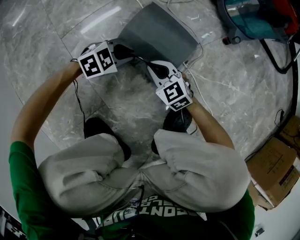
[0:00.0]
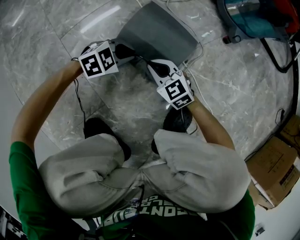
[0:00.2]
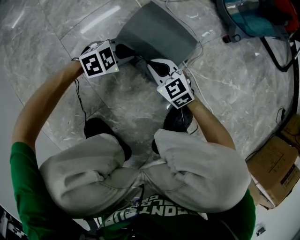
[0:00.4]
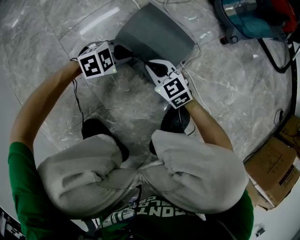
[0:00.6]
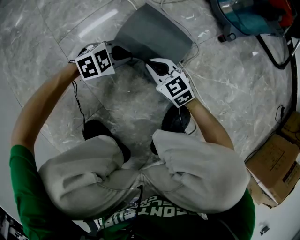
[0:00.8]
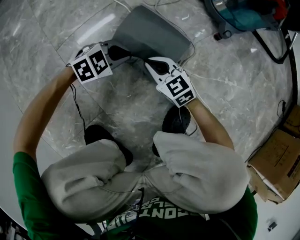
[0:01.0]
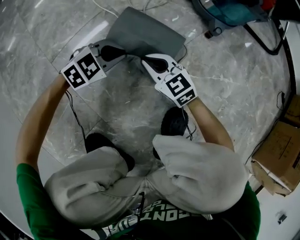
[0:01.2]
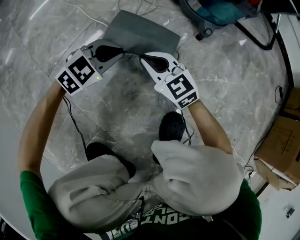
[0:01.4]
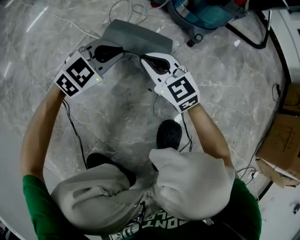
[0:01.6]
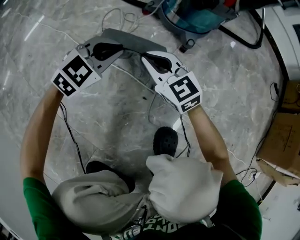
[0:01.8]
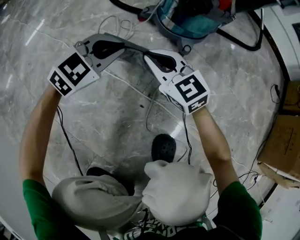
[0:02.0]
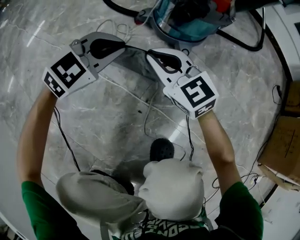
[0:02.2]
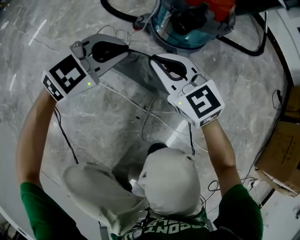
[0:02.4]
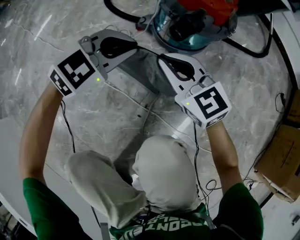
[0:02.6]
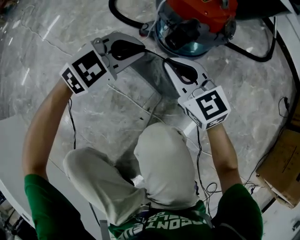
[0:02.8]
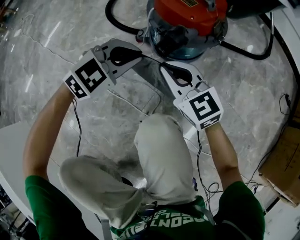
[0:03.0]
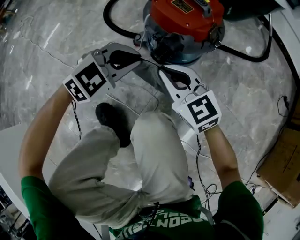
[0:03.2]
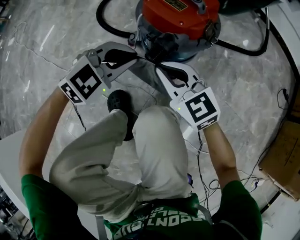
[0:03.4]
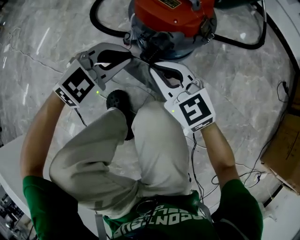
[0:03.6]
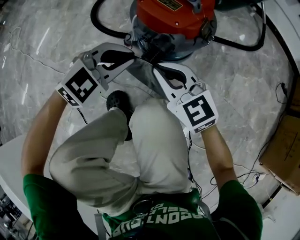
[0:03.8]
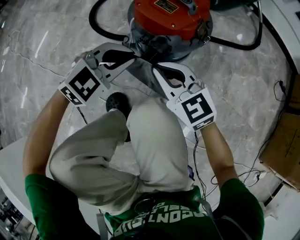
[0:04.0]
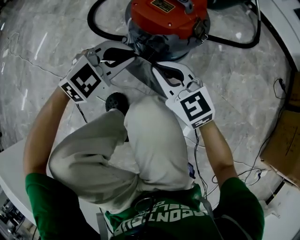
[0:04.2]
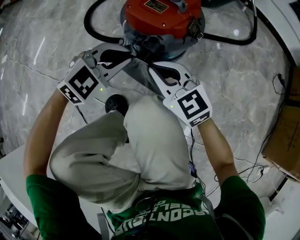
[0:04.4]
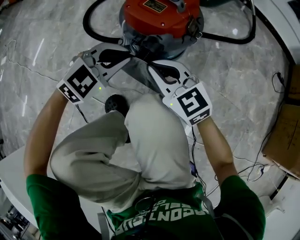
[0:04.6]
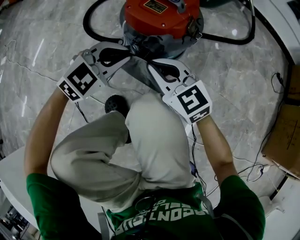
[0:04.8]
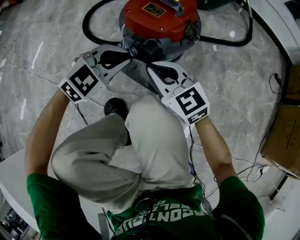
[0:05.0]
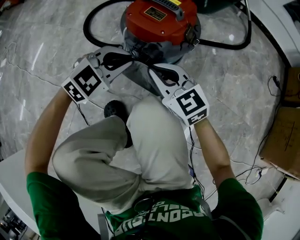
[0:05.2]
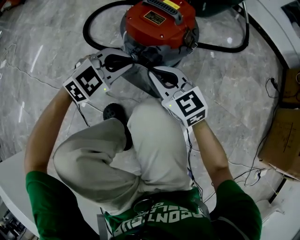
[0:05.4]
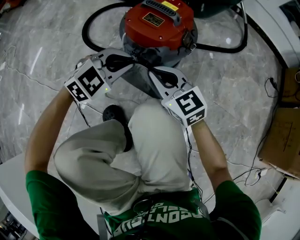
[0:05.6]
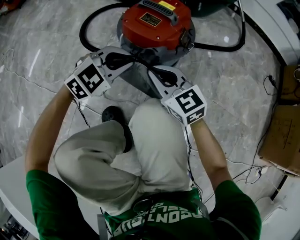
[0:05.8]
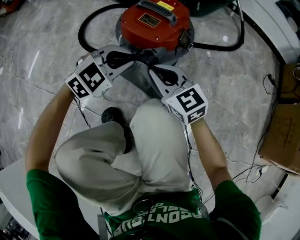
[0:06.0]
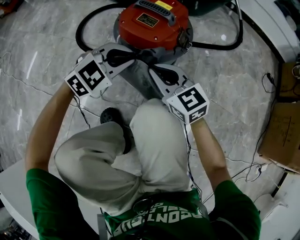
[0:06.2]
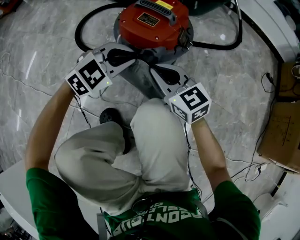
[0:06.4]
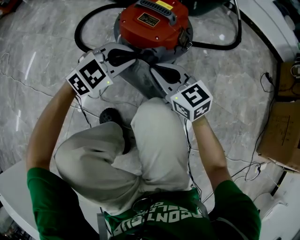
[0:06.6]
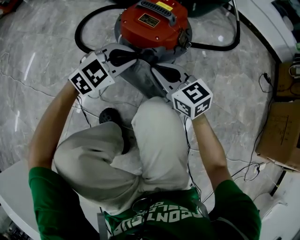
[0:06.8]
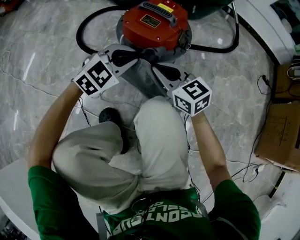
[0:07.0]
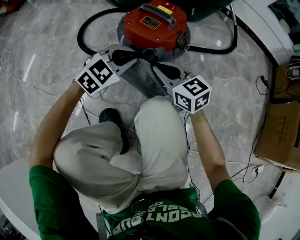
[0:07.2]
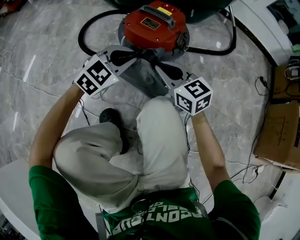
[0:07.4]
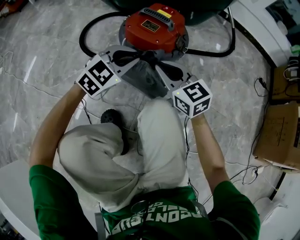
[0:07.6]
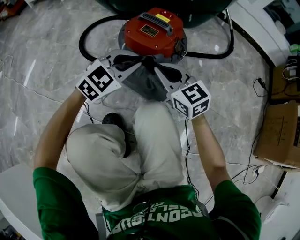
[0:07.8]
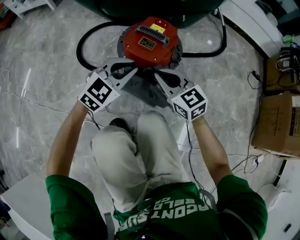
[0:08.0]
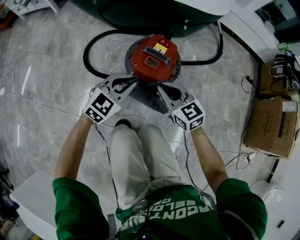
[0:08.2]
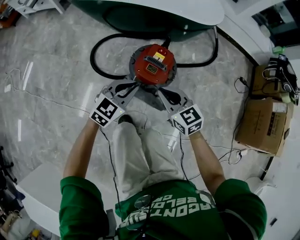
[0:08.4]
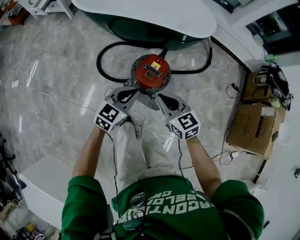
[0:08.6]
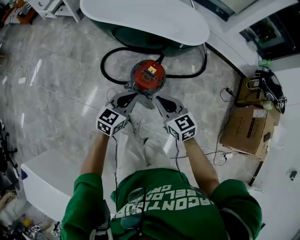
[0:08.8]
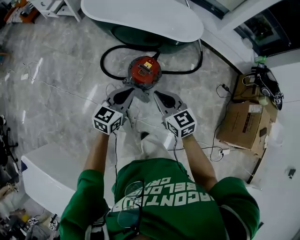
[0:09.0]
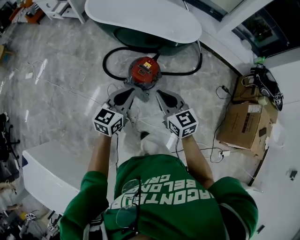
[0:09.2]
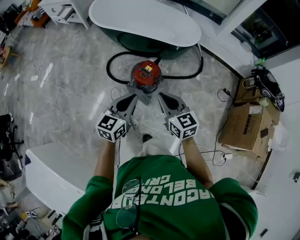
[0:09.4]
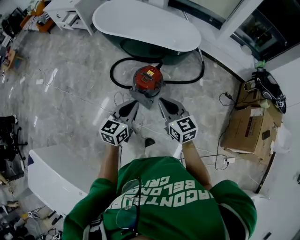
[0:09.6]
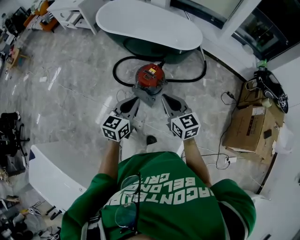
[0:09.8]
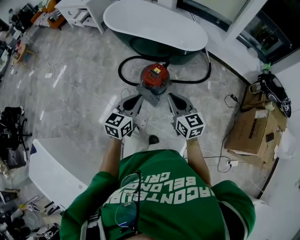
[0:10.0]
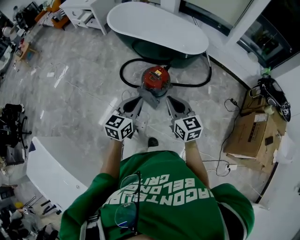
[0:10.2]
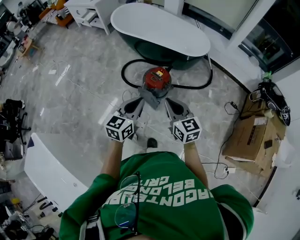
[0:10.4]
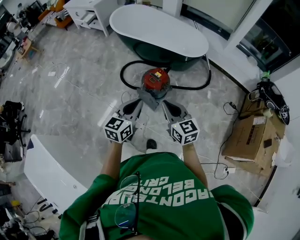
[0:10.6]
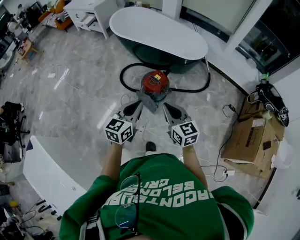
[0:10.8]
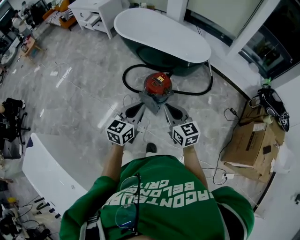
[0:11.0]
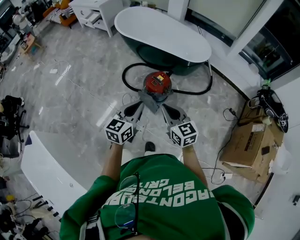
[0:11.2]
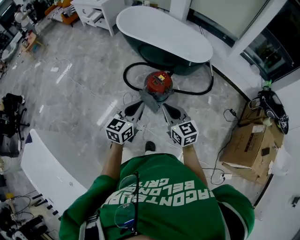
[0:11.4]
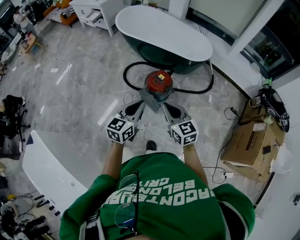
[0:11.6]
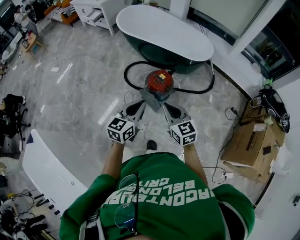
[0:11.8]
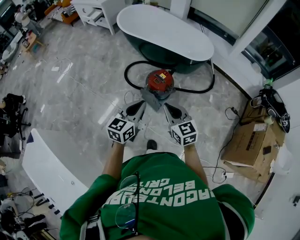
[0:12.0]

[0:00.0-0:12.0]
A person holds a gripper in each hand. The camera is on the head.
0:00.0 to 0:01.6: The grippers both shift upward by approximately 15 cm. The right gripper turns by roughly 20 degrees. The left gripper swivels some 20 degrees.
0:01.6 to 0:03.0: Both grippers move forward, upward and to the right, about 25 cm.
0:03.0 to 0:04.4: The left gripper ends up roughly 5 cm from where it was.
0:04.4 to 0:07.6: The grippers stay close to where they were, moving slightly.
0:07.6 to 0:09.0: Both grippers move upward, approximately 60 cm. The left gripper changes its angle by about 40 degrees.
0:09.0 to 0:10.4: The left gripper moves backward and upward, some 20 cm. The right gripper moves backward, upward and to the right, approximately 20 cm.
0:10.4 to 0:12.0: The grippers make only small movements.

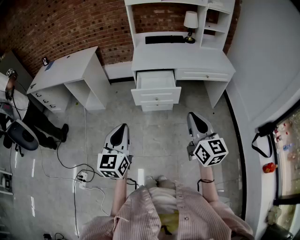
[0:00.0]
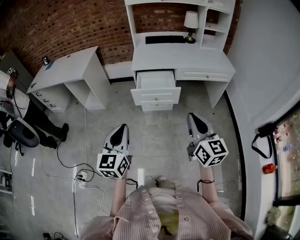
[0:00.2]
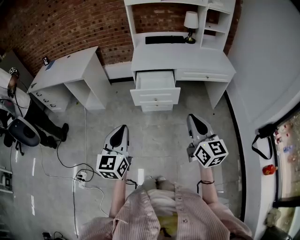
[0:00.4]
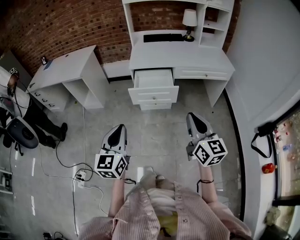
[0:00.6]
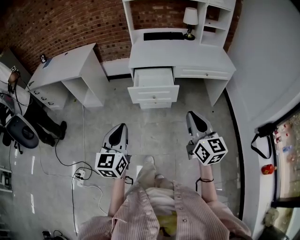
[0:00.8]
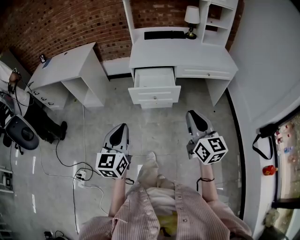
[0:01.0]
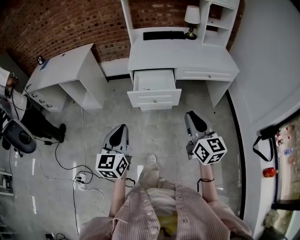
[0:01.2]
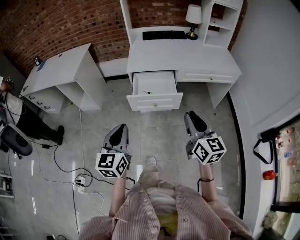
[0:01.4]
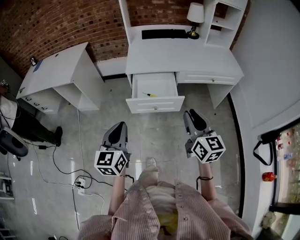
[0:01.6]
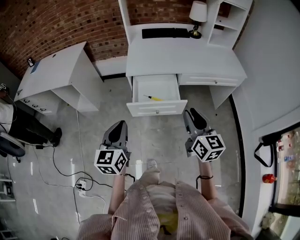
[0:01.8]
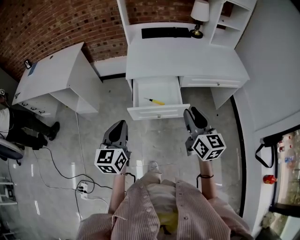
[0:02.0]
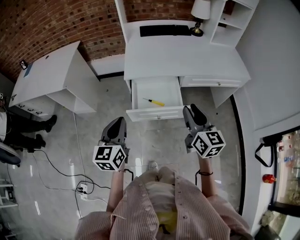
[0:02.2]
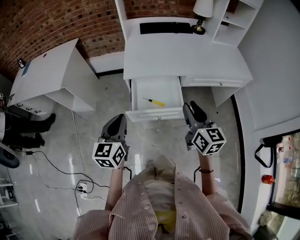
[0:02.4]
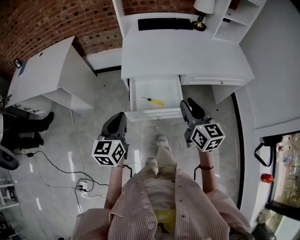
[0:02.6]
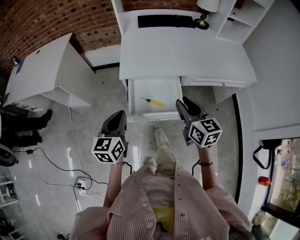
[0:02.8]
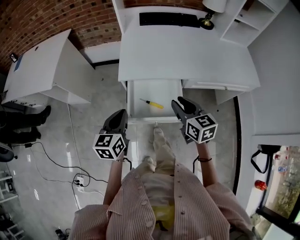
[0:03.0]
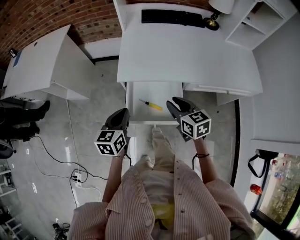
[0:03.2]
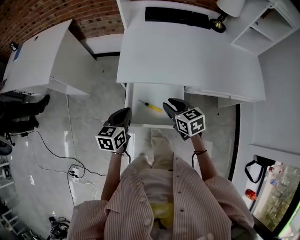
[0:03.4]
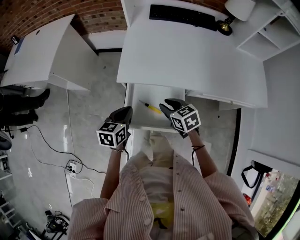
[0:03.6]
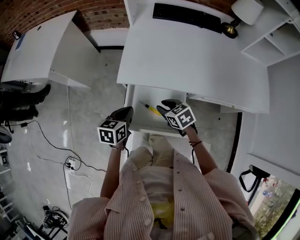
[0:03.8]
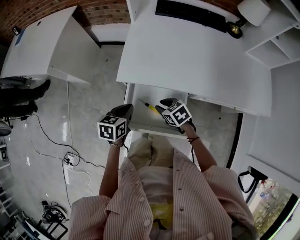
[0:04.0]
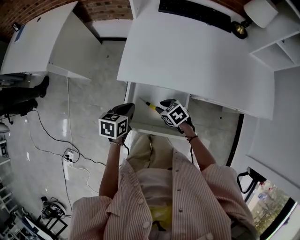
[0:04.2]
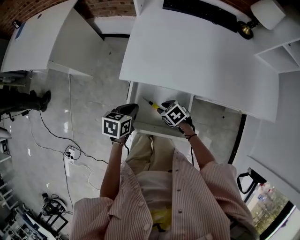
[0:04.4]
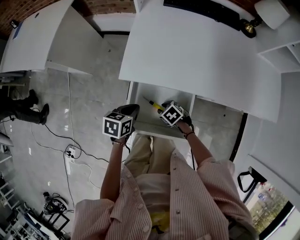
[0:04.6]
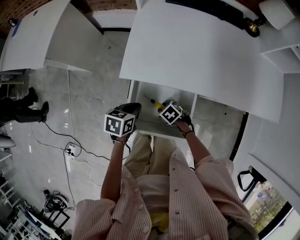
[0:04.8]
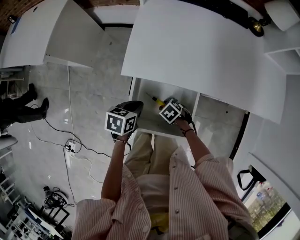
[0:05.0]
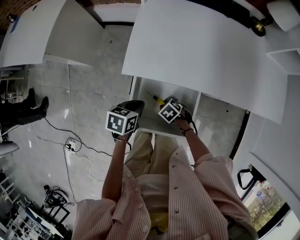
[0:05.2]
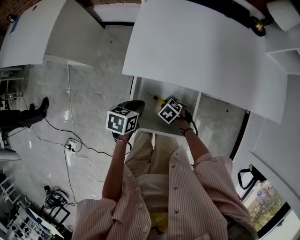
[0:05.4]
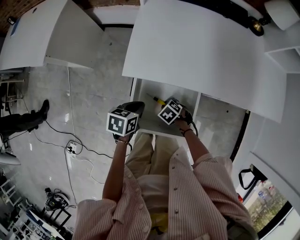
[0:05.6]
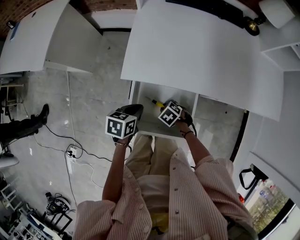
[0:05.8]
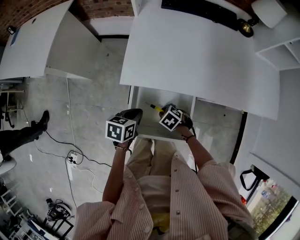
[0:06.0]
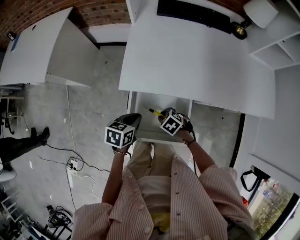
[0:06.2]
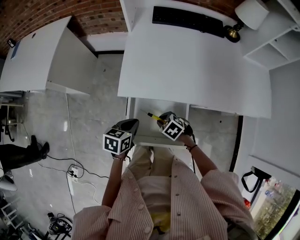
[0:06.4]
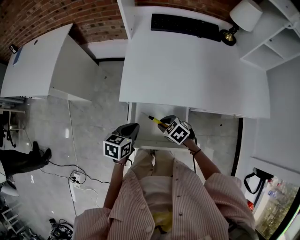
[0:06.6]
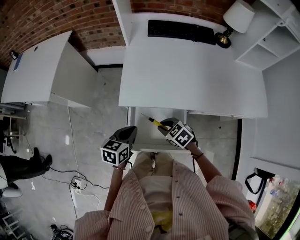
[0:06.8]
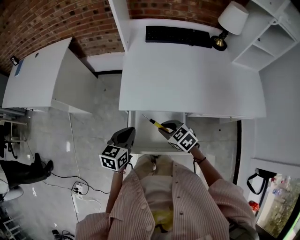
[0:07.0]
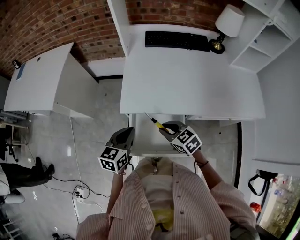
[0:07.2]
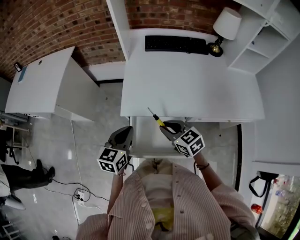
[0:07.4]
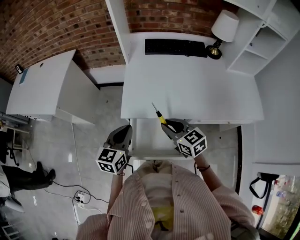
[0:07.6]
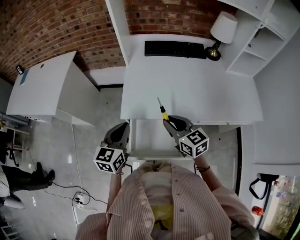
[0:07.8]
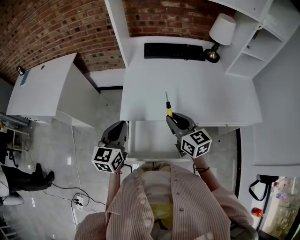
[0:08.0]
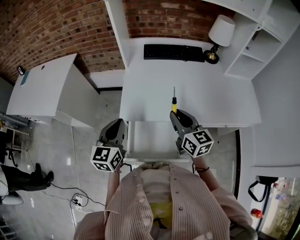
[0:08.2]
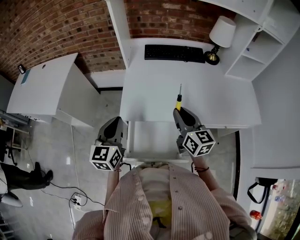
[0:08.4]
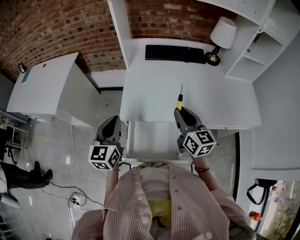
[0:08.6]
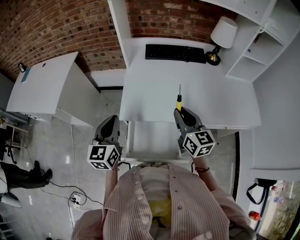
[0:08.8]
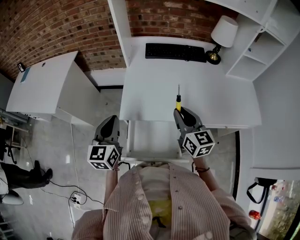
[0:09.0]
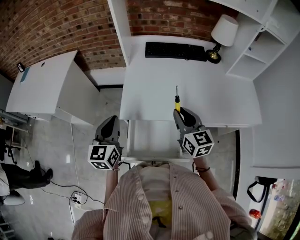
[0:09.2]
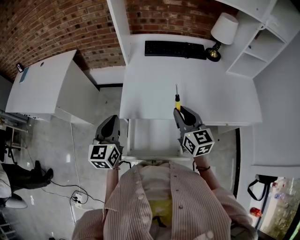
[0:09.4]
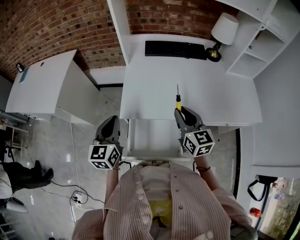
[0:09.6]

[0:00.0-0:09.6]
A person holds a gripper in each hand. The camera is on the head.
0:00.0 to 0:01.6: Both grippers move forward, some 20 cm.
0:01.6 to 0:03.2: The grippers both shift forward and downward by roughly 35 cm. The right gripper changes its angle by approximately 30 degrees; the left gripper swivels approximately 20 degrees.
0:03.2 to 0:04.8: The right gripper shifts approximately 25 cm downward, and tilts its fingers some 40 degrees downward. Meanwhile the left gripper shifts roughly 15 cm downward, and changes its angle by roughly 30 degrees.
0:04.8 to 0:06.4: The right gripper heads upward, covering some 5 cm.
0:06.4 to 0:08.0: The two grippers go roughly 25 cm upward. The right gripper angles its fingers upward, by roughly 50 degrees, while the left gripper tilts its fingers some 30 degrees upward.
0:08.0 to 0:09.6: The grippers move only a little.

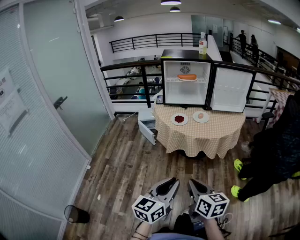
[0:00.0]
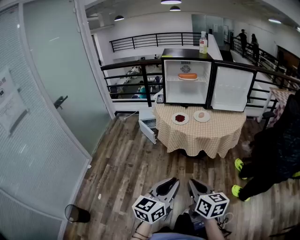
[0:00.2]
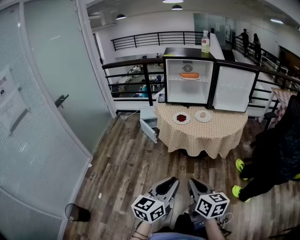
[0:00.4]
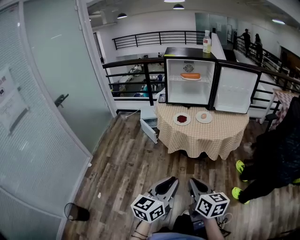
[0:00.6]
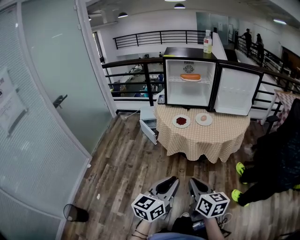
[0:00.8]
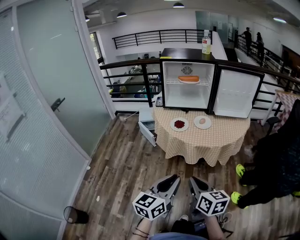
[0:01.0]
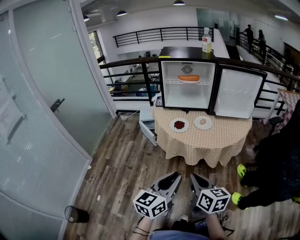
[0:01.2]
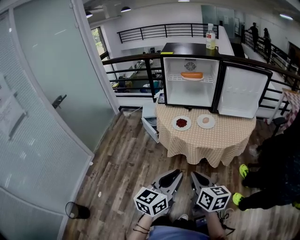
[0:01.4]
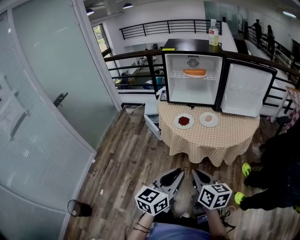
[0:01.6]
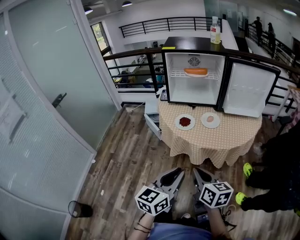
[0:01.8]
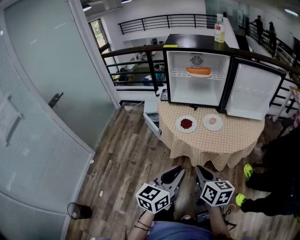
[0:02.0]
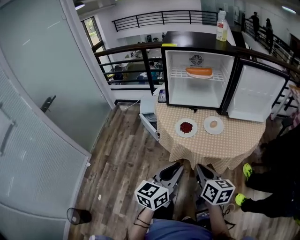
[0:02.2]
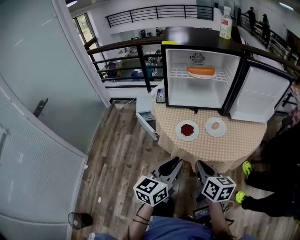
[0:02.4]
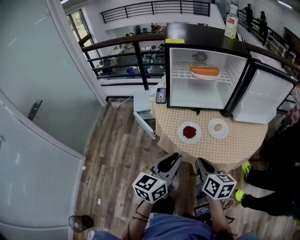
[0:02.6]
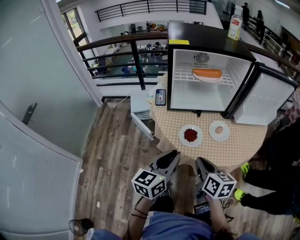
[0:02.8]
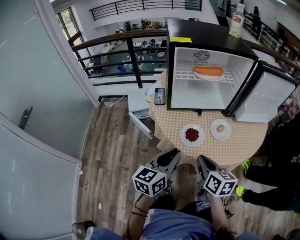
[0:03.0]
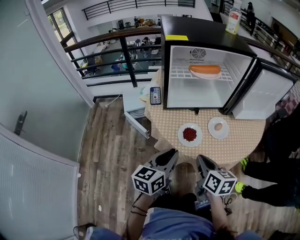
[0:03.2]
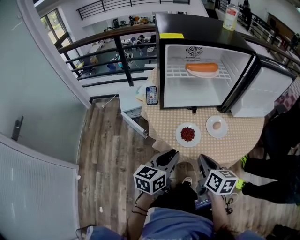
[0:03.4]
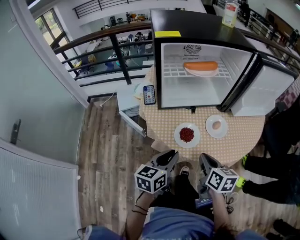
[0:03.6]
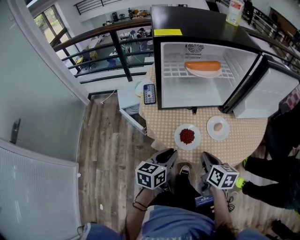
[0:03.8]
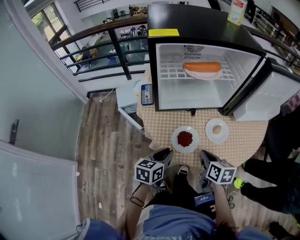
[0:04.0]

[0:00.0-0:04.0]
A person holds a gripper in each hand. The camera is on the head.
0:00.0 to 0:01.4: Both grippers move forward, about 15 cm.
0:01.4 to 0:02.6: Both grippers move forward, about 25 cm.
0:02.6 to 0:04.0: The right gripper shifts about 20 cm forward and downward. Meanwhile the left gripper moves downward and forward, roughly 20 cm, and changes its angle by about 30 degrees.
